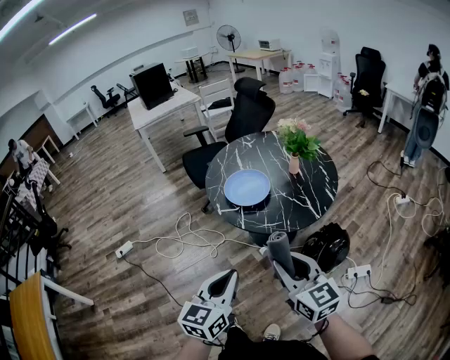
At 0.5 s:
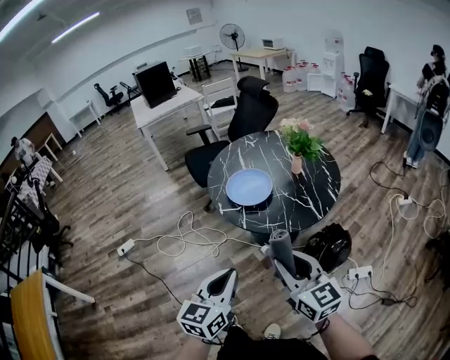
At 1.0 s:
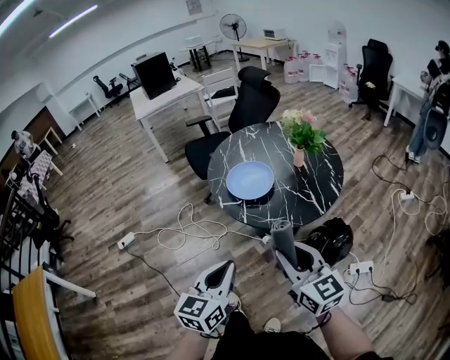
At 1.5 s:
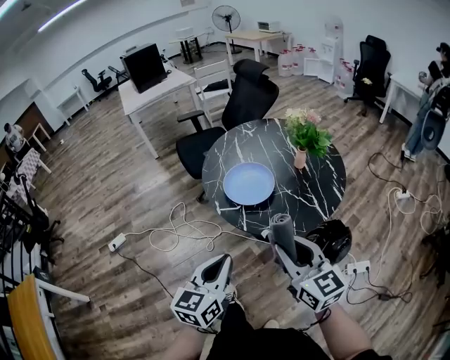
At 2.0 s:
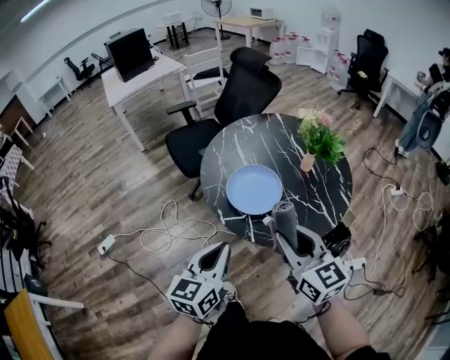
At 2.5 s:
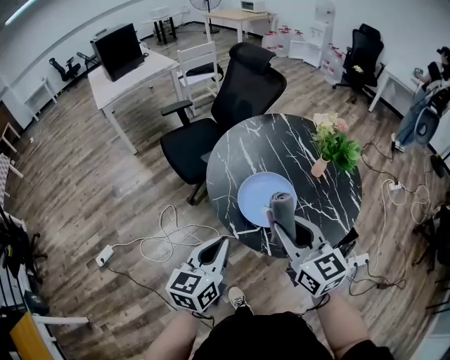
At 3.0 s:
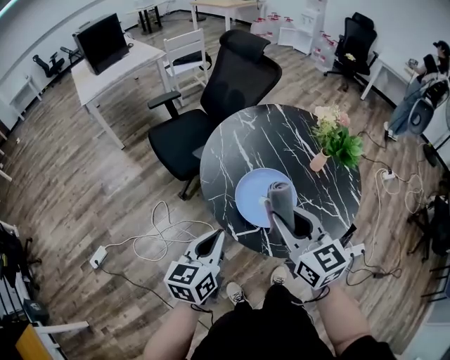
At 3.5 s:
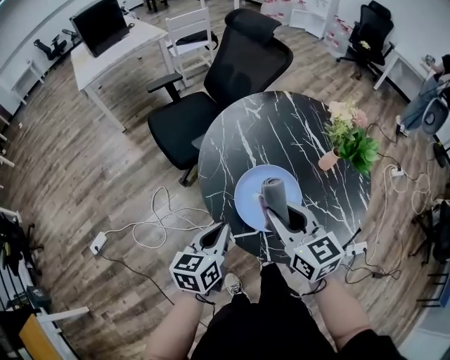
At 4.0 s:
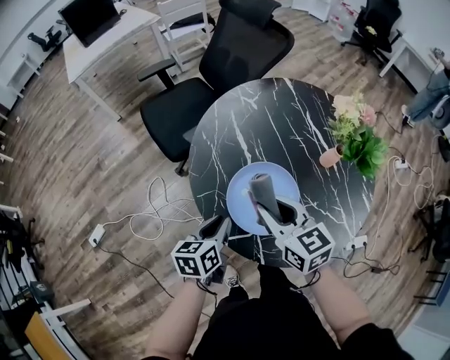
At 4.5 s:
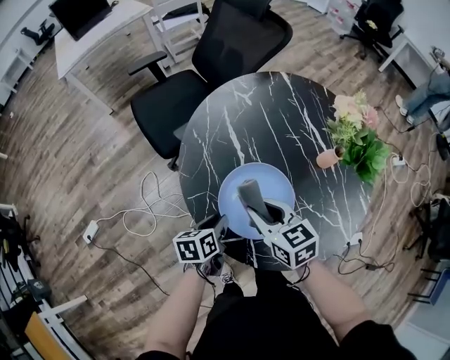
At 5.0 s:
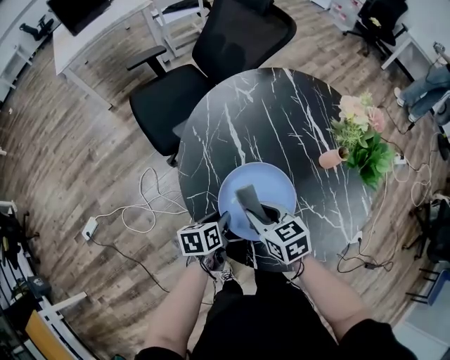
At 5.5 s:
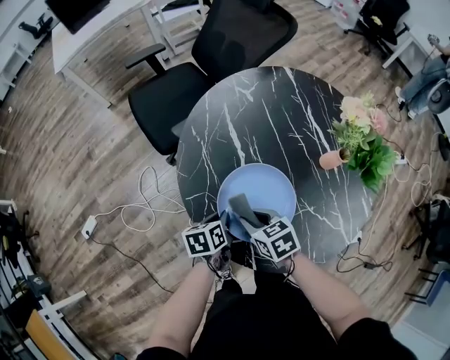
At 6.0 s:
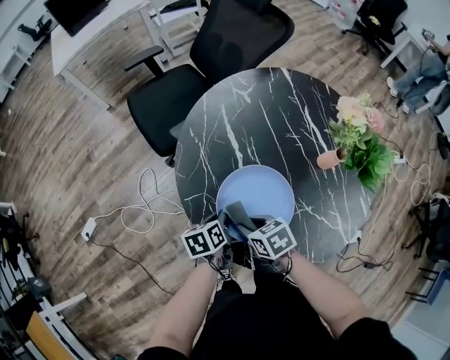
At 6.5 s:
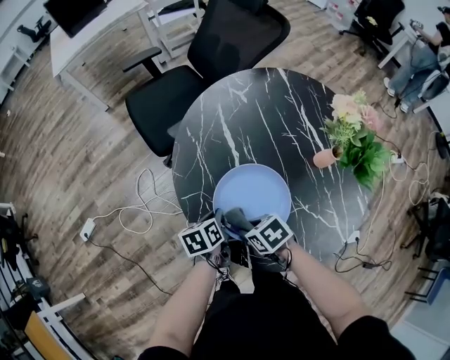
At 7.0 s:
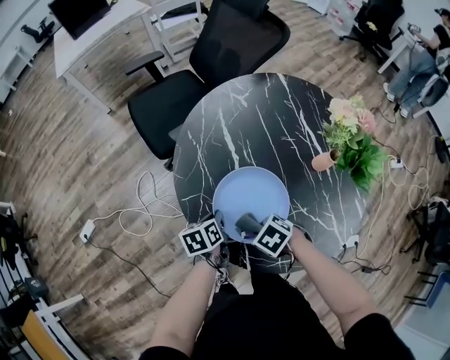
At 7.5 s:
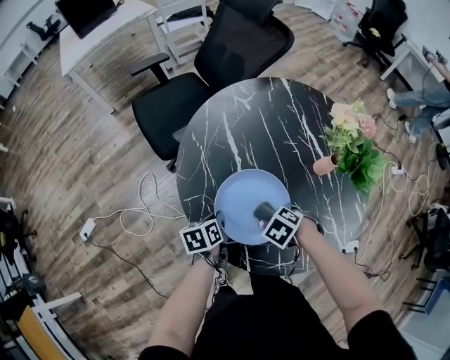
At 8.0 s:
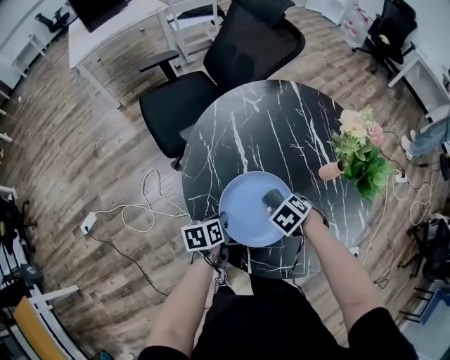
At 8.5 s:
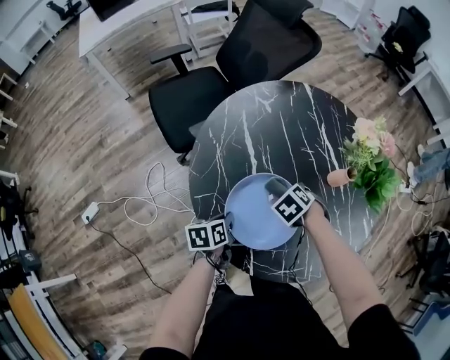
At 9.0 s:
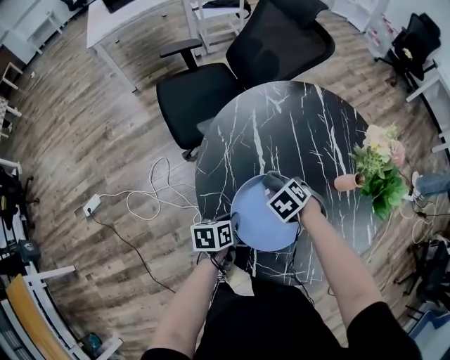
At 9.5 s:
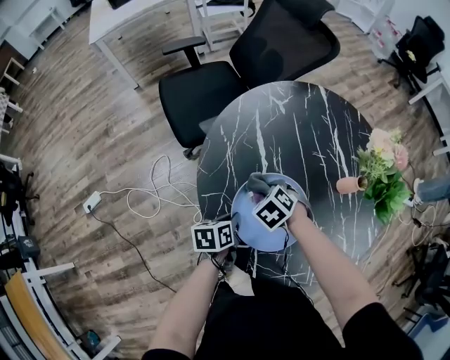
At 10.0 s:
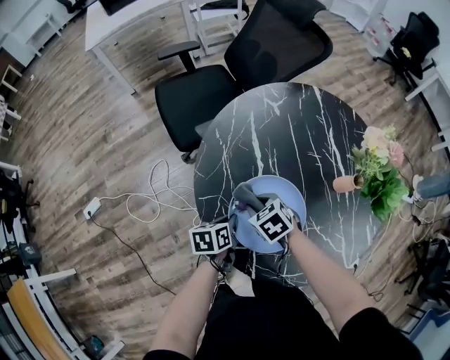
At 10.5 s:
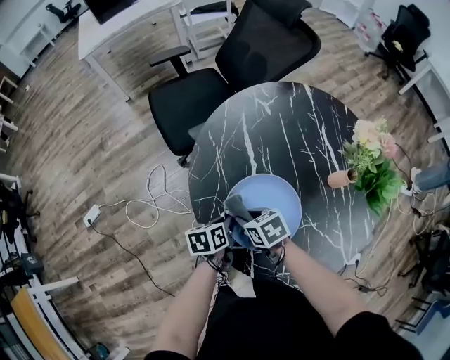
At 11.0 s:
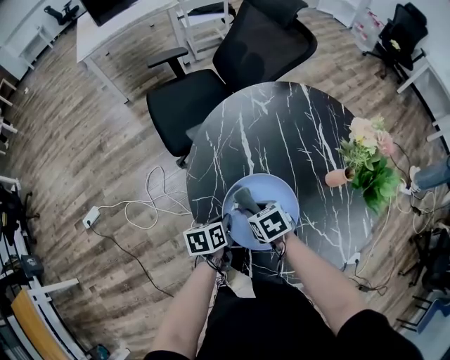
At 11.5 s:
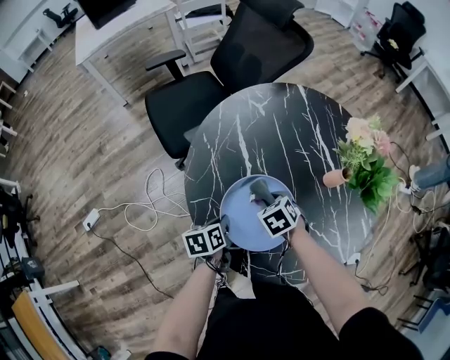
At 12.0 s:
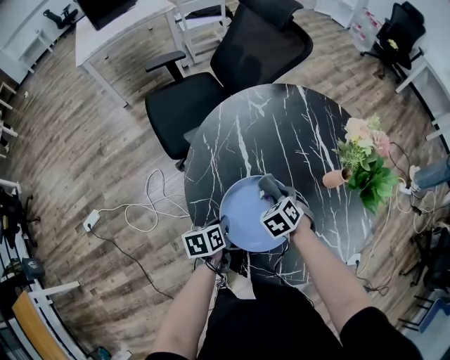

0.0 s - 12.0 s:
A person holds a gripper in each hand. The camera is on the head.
0.0 s - 2.0 s: The two grippers go some 25 cm forward.
2.0 s - 4.0 s: Both grippers move forward and downward, roughly 30 cm. The left gripper changes its angle by roughly 30 degrees.
4.0 s - 6.0 s: The right gripper travels downward by roughly 20 cm, and points its fingers roughly 30 degrees further downward. Meanwhile the left gripper heads downward, covering approximately 10 cm, and swivels about 20 degrees.
6.0 s - 8.0 s: The right gripper changes place by some 15 cm, and angles its fingers downward, by approximately 30 degrees.
8.0 s - 10.0 s: The right gripper moves about 15 cm, and turns by roughly 30 degrees.
10.0 s - 12.0 s: The right gripper moves some 10 cm, and turns by some 20 degrees.

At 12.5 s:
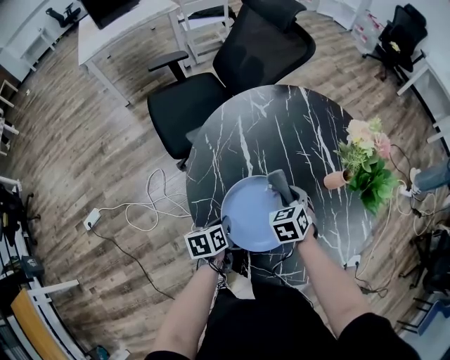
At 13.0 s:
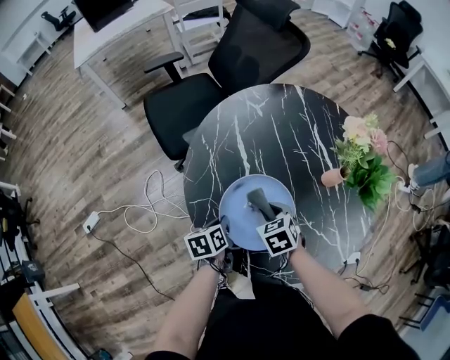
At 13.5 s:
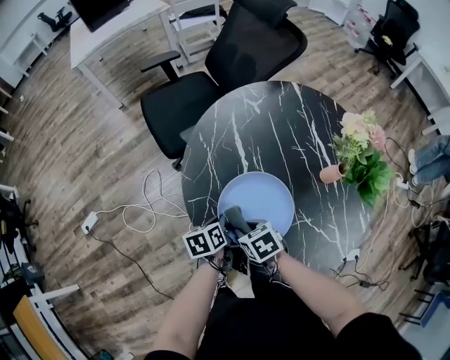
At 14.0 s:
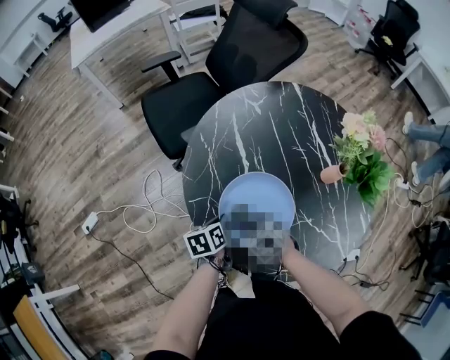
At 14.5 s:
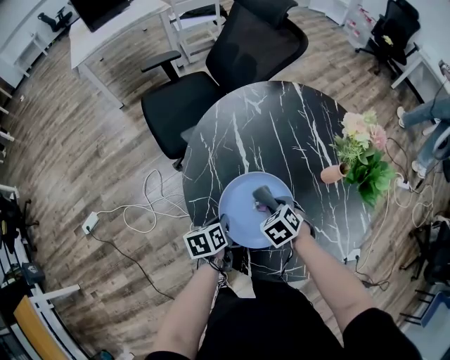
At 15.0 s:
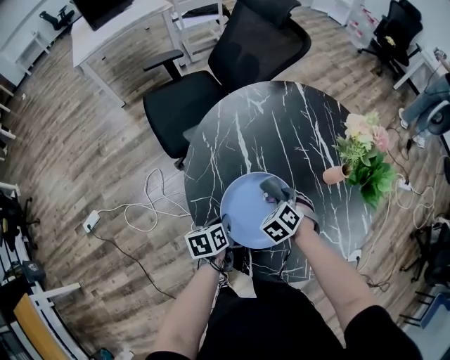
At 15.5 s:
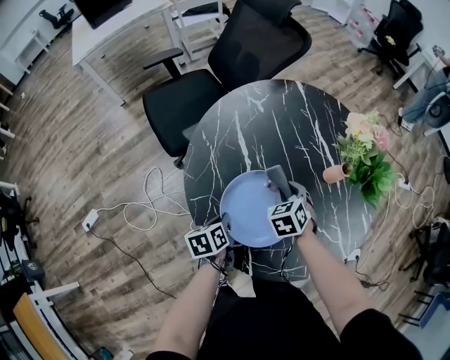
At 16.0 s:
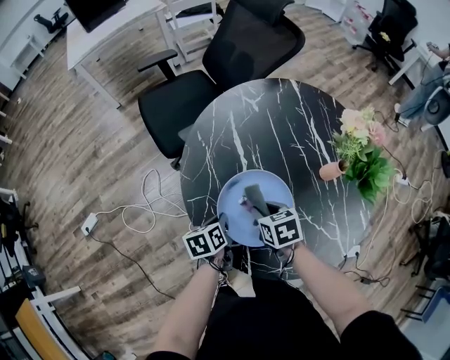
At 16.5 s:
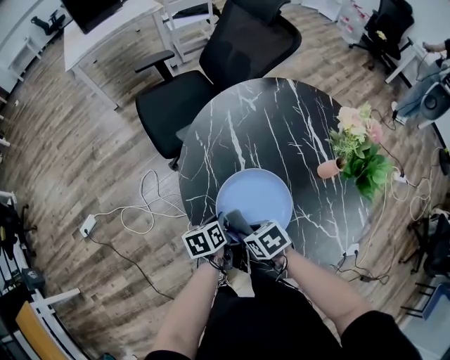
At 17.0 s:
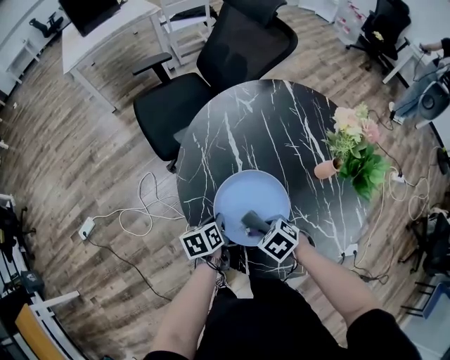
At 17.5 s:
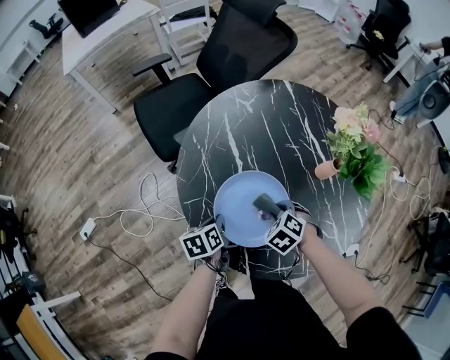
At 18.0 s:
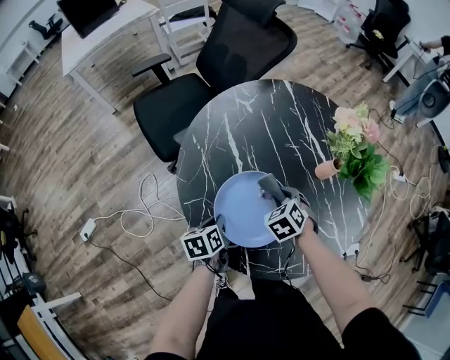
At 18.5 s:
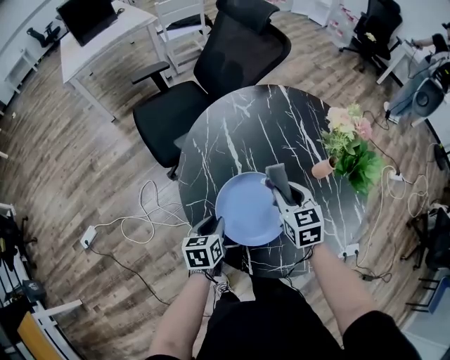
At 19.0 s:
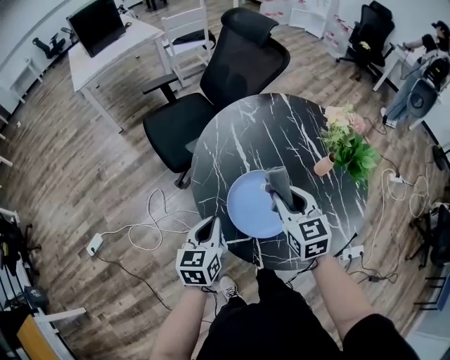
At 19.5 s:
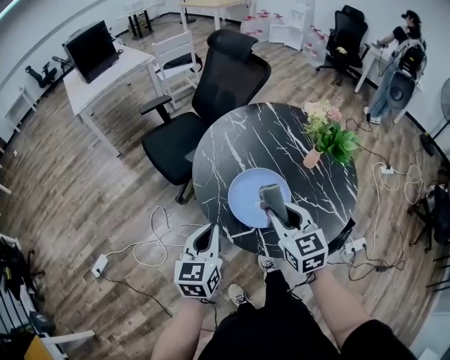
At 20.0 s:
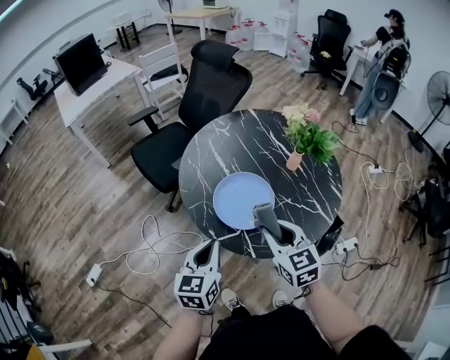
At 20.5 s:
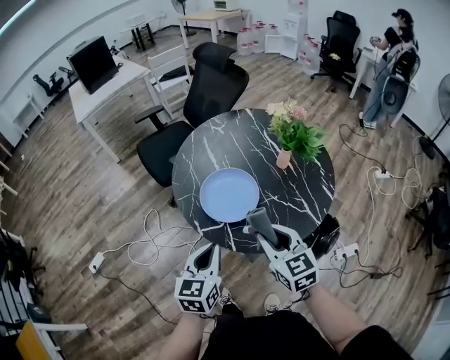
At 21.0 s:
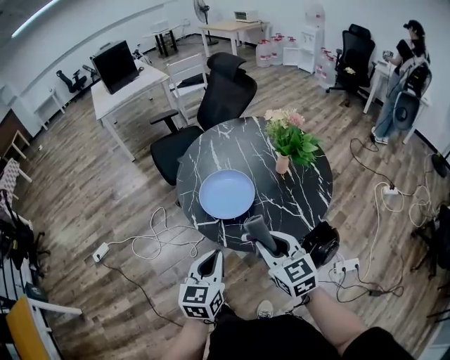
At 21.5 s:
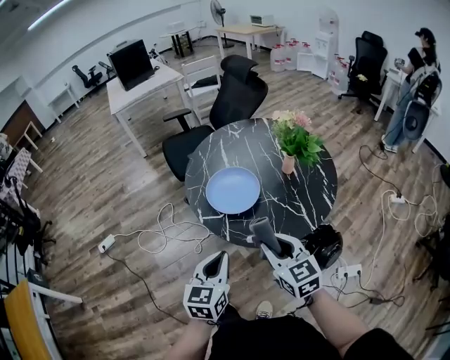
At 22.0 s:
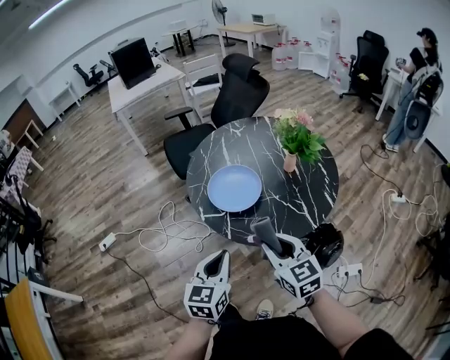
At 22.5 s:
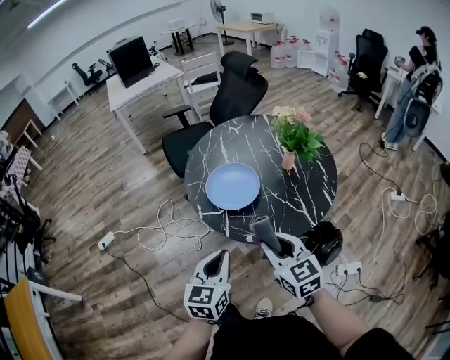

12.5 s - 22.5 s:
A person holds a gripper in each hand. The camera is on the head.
12.5 s - 14.5 s: The right gripper turns by approximately 20 degrees.
14.5 s - 16.5 s: The right gripper shifts by roughly 15 cm, and turns by some 30 degrees.
16.5 s - 18.5 s: The left gripper changes its angle by about 20 degrees; the right gripper moves approximately 20 cm, and changes its angle by roughly 50 degrees.
18.5 s - 20.5 s: The two grippers go approximately 30 cm backward and upward. The left gripper swivels roughly 30 degrees, and closes.
20.5 s - 22.5 s: The left gripper is displaced backward and to the right by roughly 15 cm. The right gripper shifts approximately 10 cm backward.

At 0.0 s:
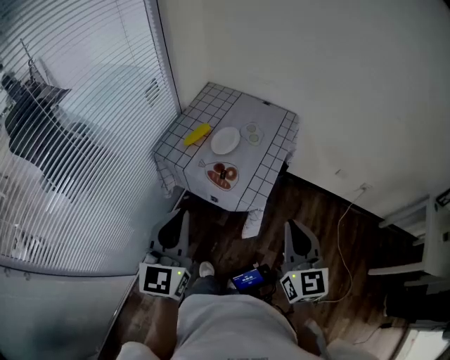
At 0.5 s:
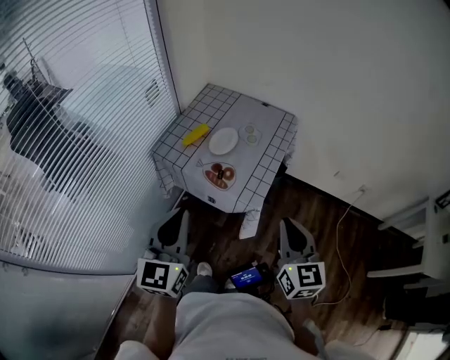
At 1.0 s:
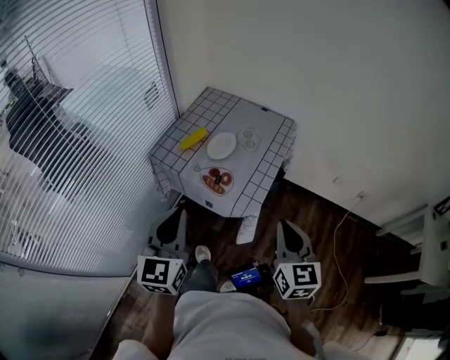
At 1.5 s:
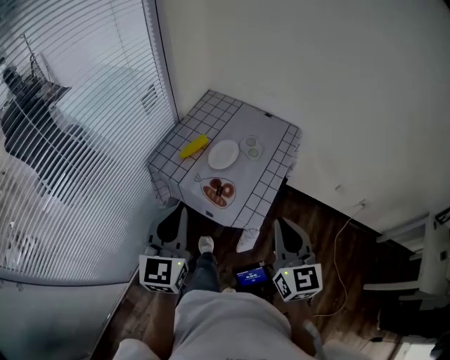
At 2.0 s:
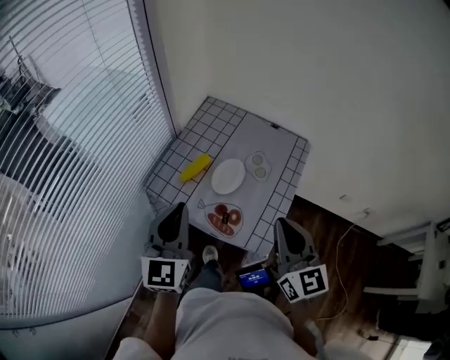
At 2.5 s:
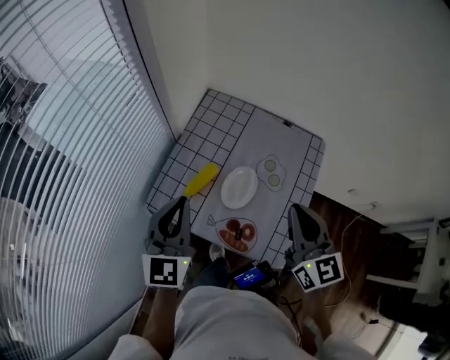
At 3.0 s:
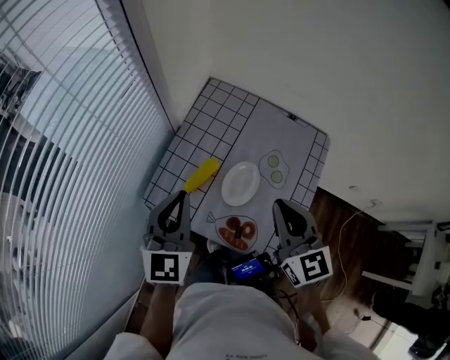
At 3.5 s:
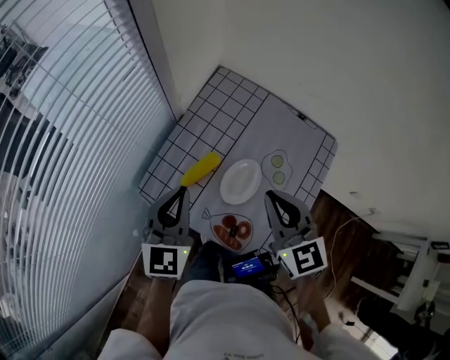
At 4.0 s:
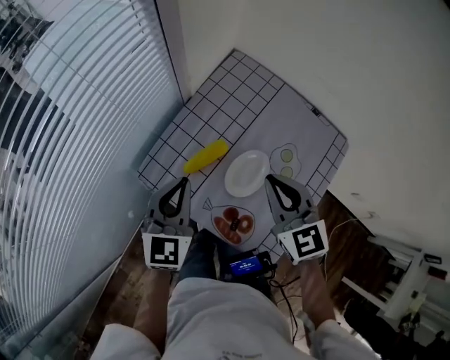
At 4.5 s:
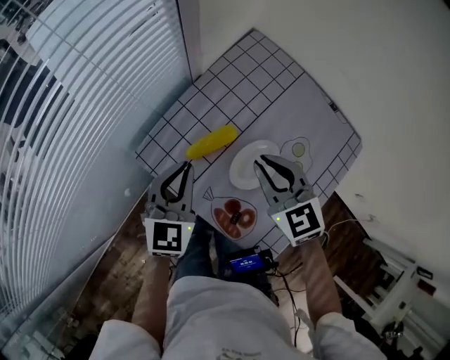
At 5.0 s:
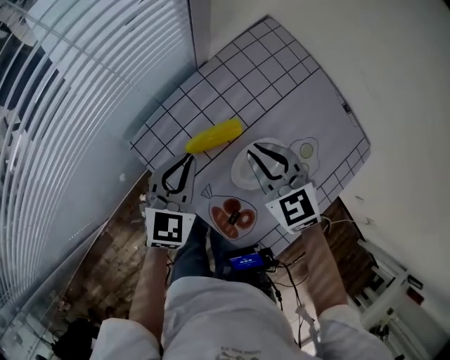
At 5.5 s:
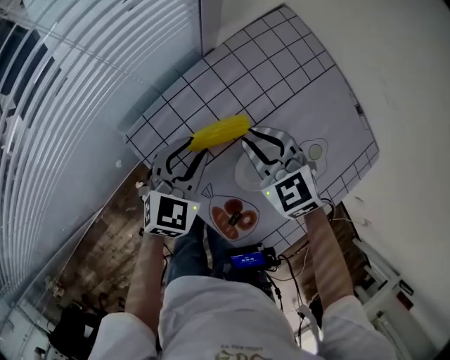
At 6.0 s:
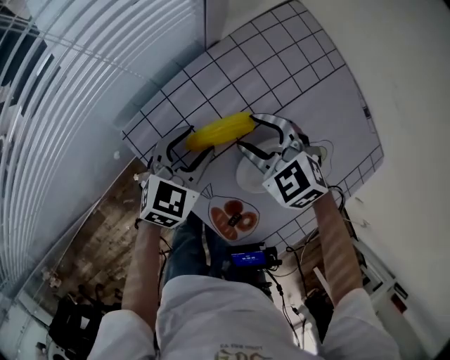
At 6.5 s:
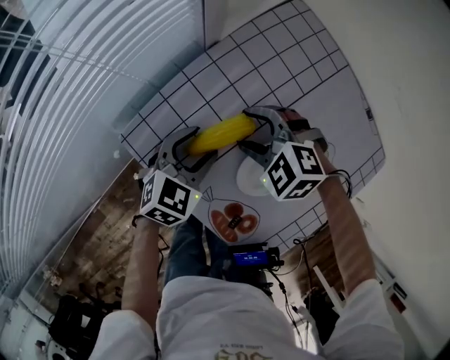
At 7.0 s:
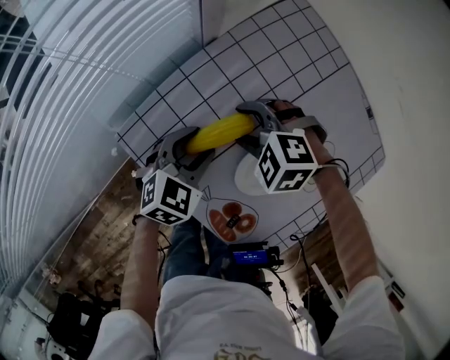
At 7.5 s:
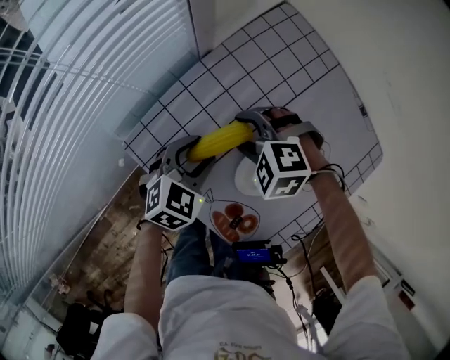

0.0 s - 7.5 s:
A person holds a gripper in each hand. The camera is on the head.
0.0 s - 2.0 s: Both grippers move forward, about 25 cm.
2.0 s - 4.0 s: The two grippers go approximately 25 cm forward and downward. The right gripper turns by about 30 degrees.
4.0 s - 5.5 s: The right gripper is displaced downward, forward and to the left by approximately 20 cm, and swivels roughly 30 degrees. The left gripper travels downward by approximately 15 cm, and opens.
5.5 s - 7.5 s: The right gripper goes roughly 5 cm downward, rotates about 40 degrees, and opens up.
